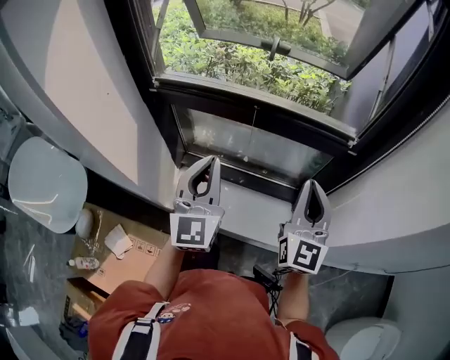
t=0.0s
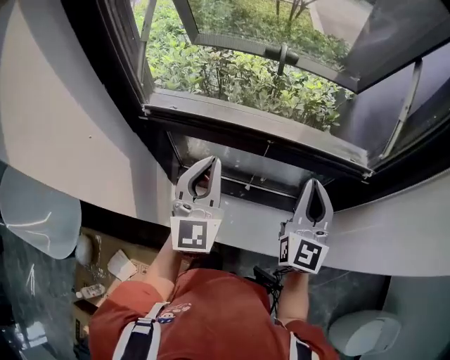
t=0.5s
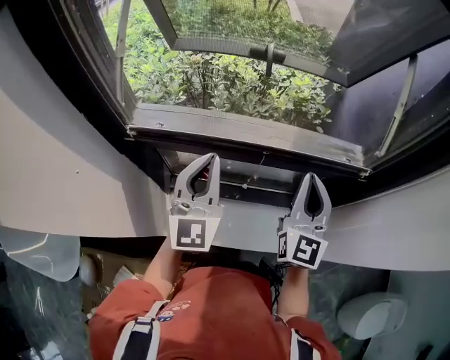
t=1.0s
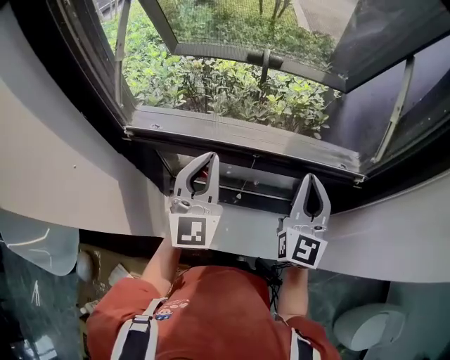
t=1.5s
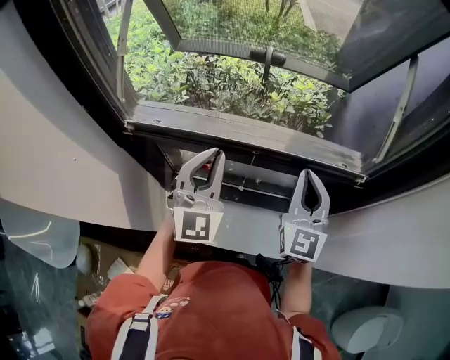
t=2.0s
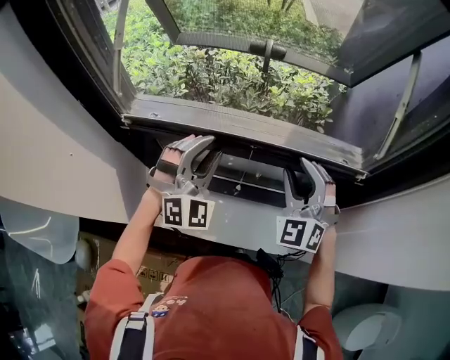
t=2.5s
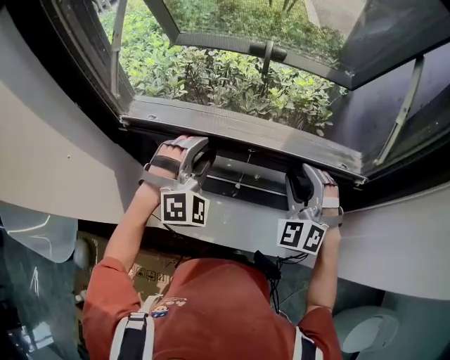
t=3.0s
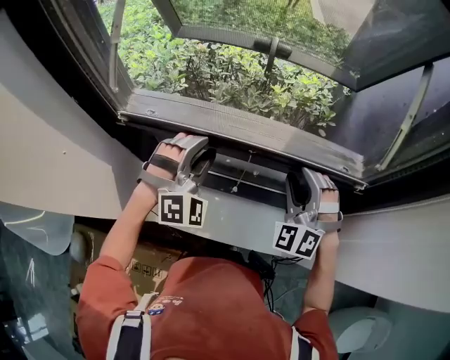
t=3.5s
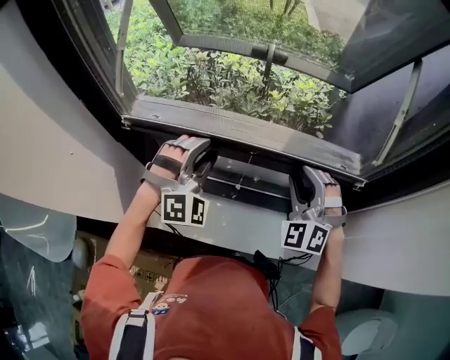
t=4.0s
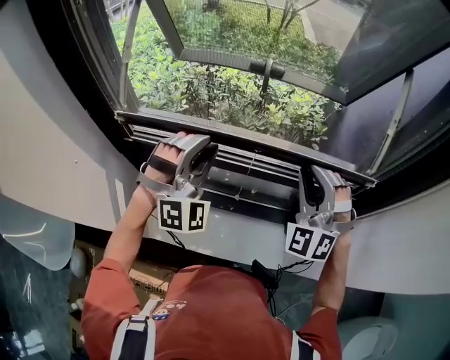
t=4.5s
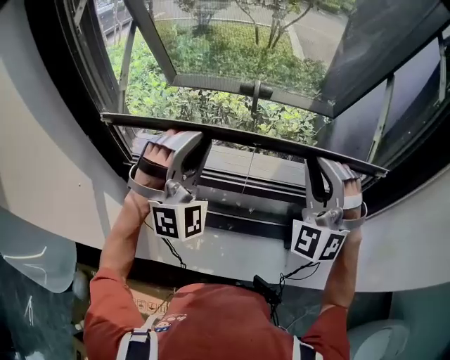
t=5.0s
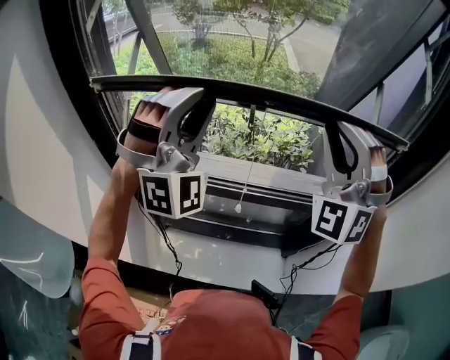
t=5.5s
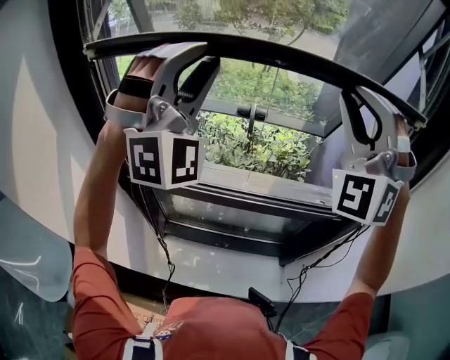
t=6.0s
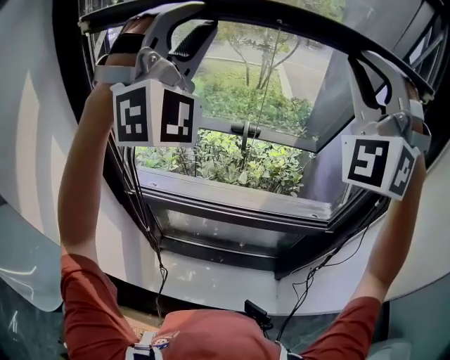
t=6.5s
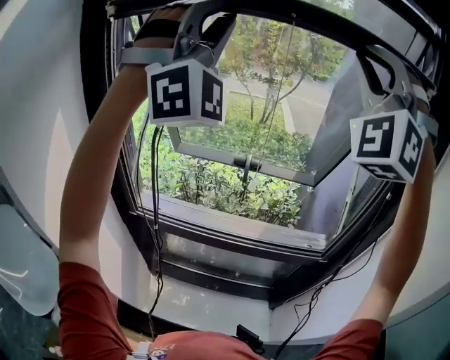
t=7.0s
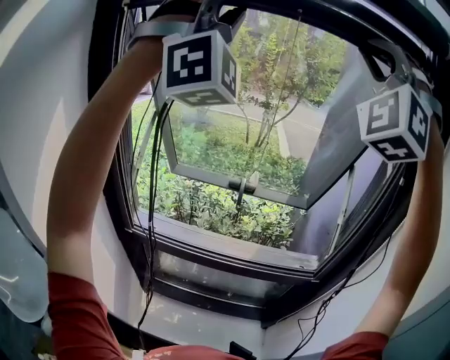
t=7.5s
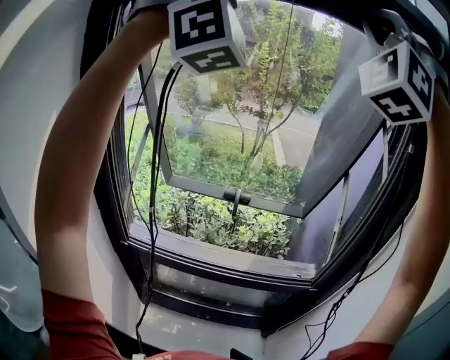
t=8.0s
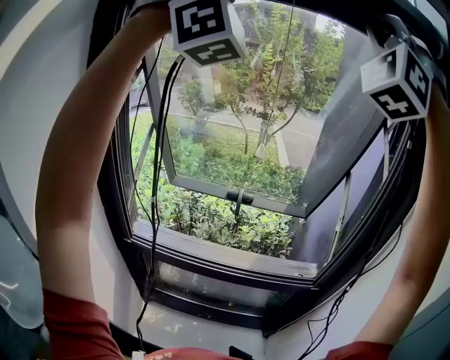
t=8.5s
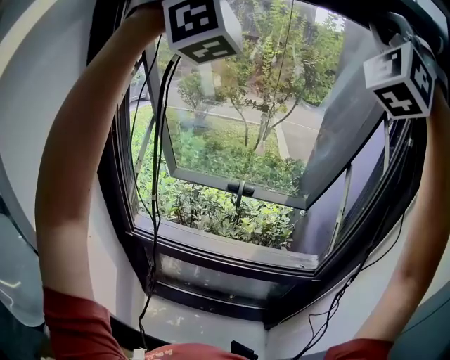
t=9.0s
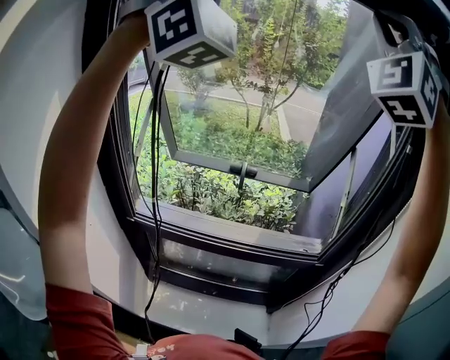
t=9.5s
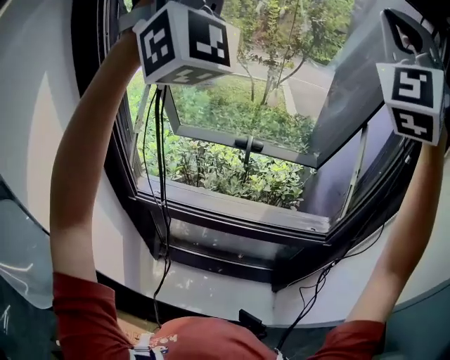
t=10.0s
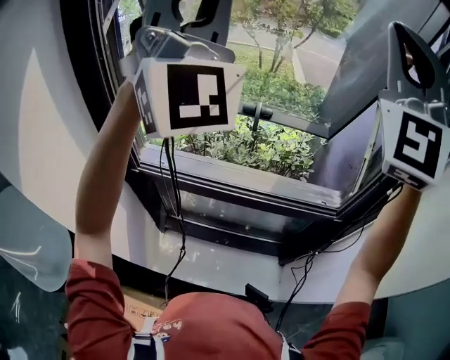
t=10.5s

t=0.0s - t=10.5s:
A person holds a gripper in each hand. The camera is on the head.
t=0.0s - t=2.0s: The two grippers go roughly 15 cm forward.
t=2.0s - t=4.0s: The left gripper is displaced downward by roughly 5 cm, twists roughly 50 degrees clockwise, seen from behind, and opens up; the right gripper moves roughly 5 cm, twists approximately 50 degrees counterclockwise, seen from behind, and opens.
t=4.0s - t=6.5s: The two grippers go about 50 cm upward. The right gripper tilts its fingers some 40 degrees upward, while the left gripper angles its fingers upward, by approximately 50 degrees.
t=6.5s - t=8.5s: Both grippers travel together upward, about 25 cm. The left gripper turns by about 30 degrees, and closes up.
t=8.5s - t=10.5s: Both grippers travel together downward, some 20 cm. The right gripper turns by roughly 40 degrees. The left gripper changes its angle by some 40 degrees.

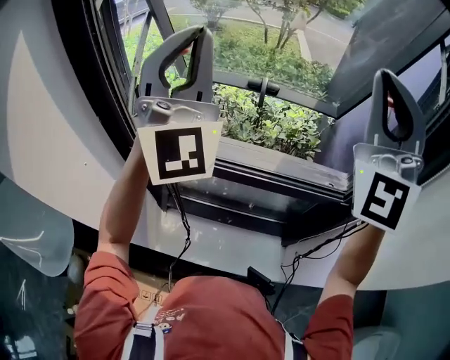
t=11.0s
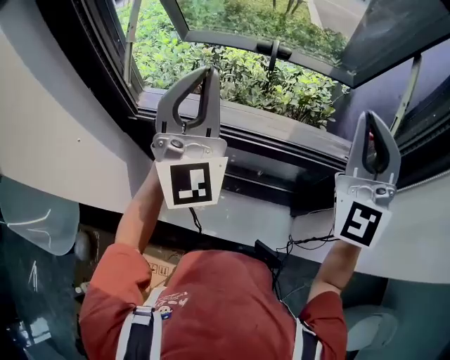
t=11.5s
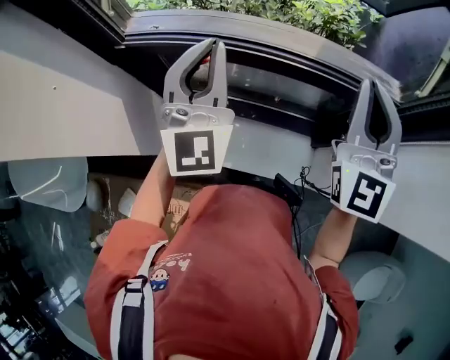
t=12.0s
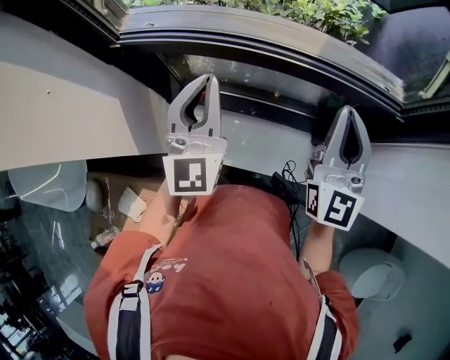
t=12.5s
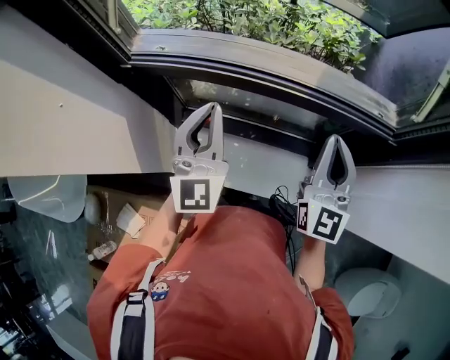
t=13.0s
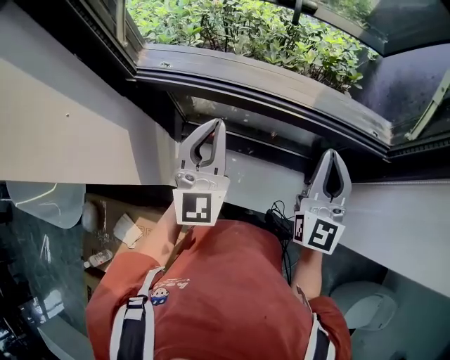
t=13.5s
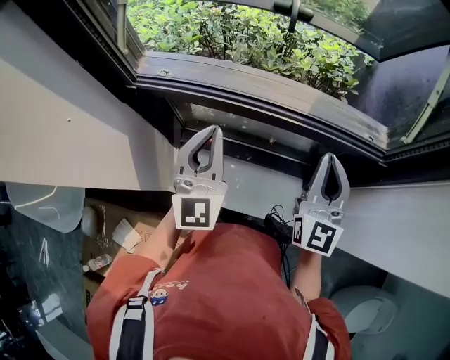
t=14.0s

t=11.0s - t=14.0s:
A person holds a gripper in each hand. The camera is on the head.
t=11.0s - t=12.5s: The two grippers go approximately 35 cm downward. The left gripper turns by approximately 40 degrees, while the right gripper twists approximately 40 degrees clockwise, seen from behind.
t=12.5s - t=14.0s: The grippers make only small movements.

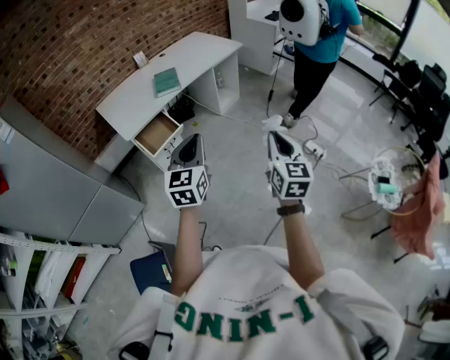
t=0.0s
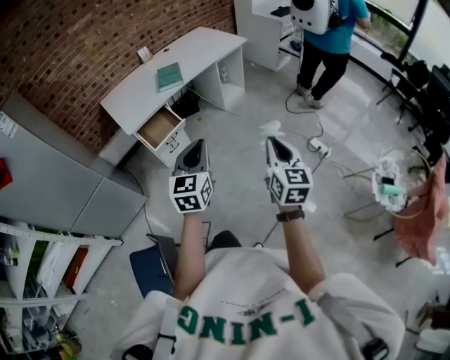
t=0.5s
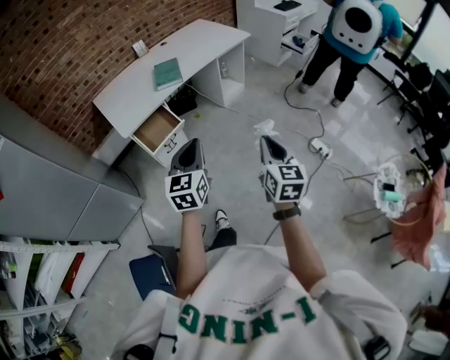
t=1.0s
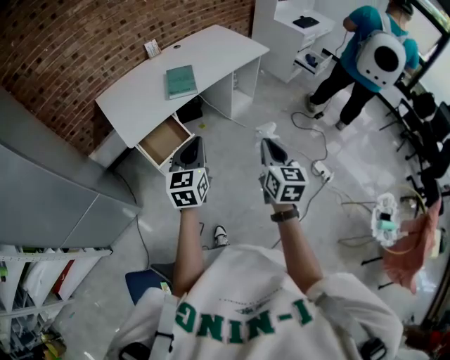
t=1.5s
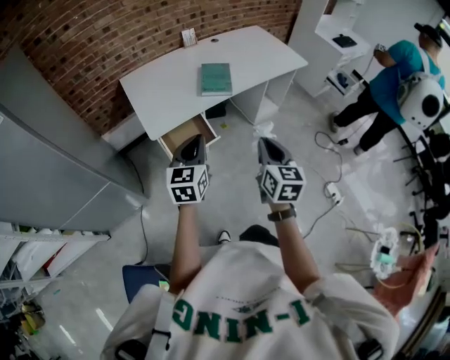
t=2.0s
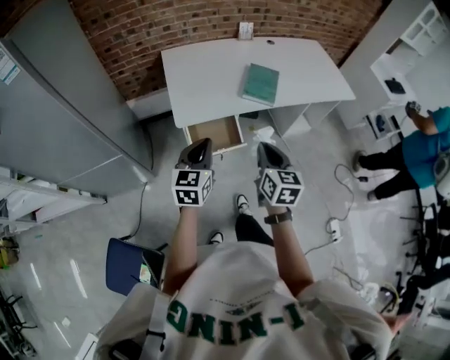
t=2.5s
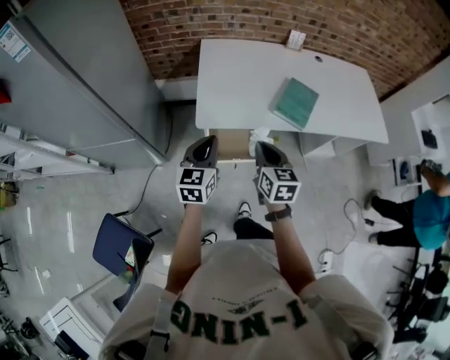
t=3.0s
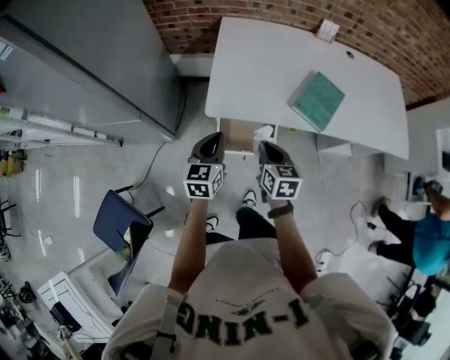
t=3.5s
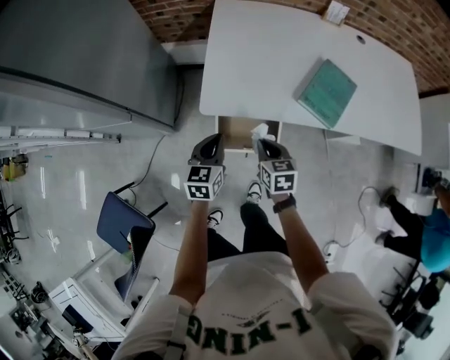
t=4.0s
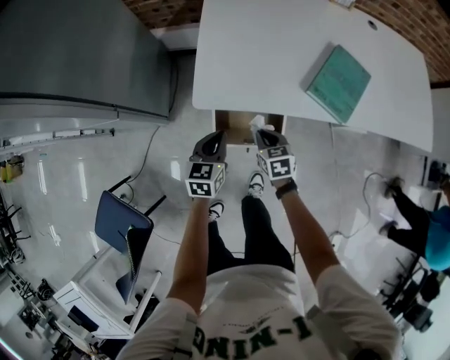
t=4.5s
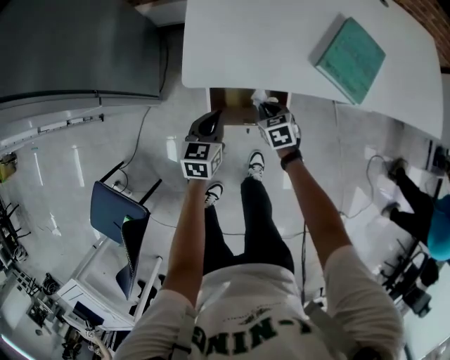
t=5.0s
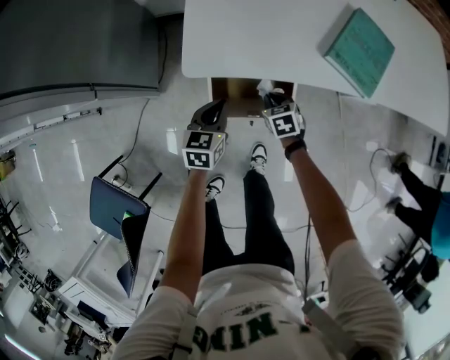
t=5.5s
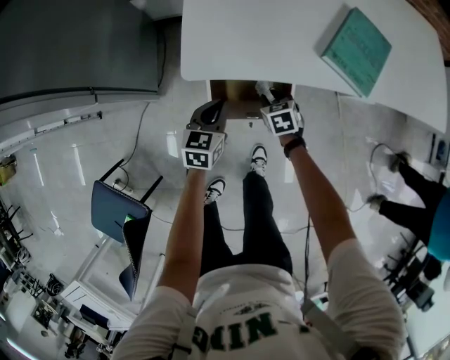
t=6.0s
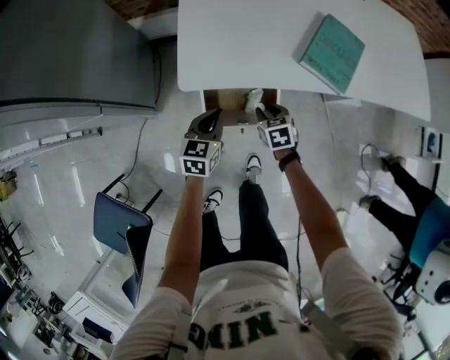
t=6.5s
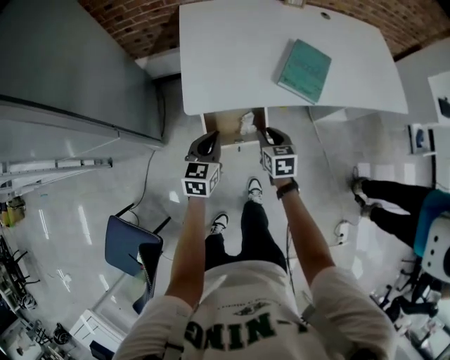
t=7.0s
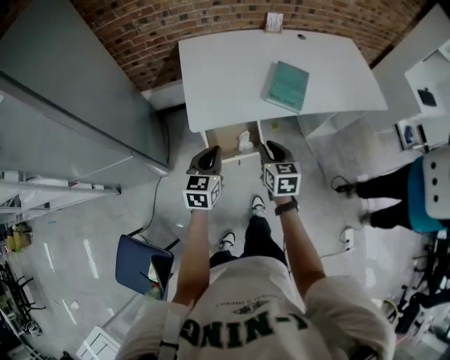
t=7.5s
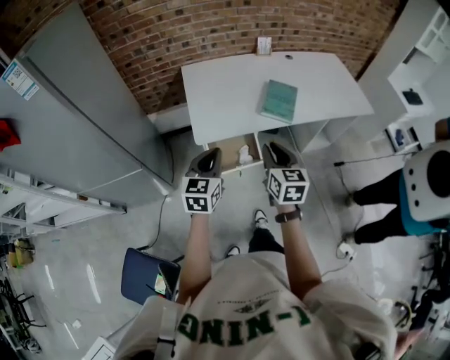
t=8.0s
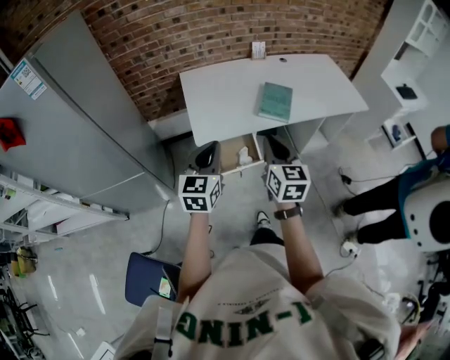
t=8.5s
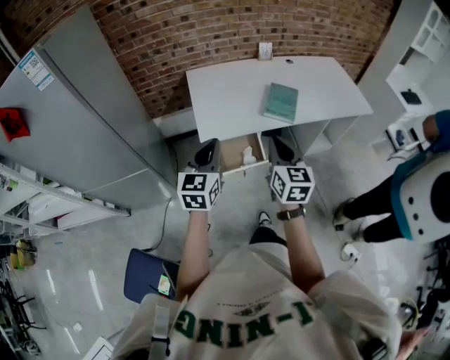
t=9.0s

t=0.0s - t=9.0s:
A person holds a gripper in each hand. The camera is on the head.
t=0.0s - t=2.0s: Both grippers travel together forward and to the left, about 35 cm.
t=2.0s - t=4.5s: Both grippers move downward, about 35 cm. The left gripper turns by about 40 degrees; the right gripper points its fingers some 40 degrees further downward.
t=4.5s - t=7.0s: Both grippers move upward, about 10 cm.
t=7.0s - t=9.0s: The two grippers go some 30 cm upward and backward. The right gripper tilts its fingers roughly 30 degrees upward, and closes up; the left gripper rotates roughly 20 degrees.

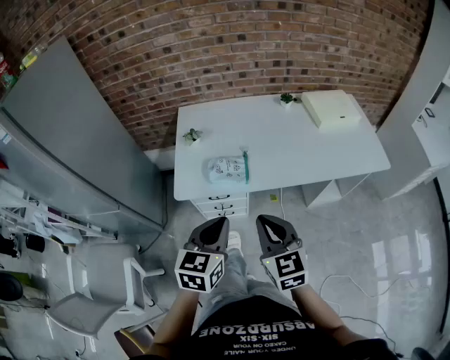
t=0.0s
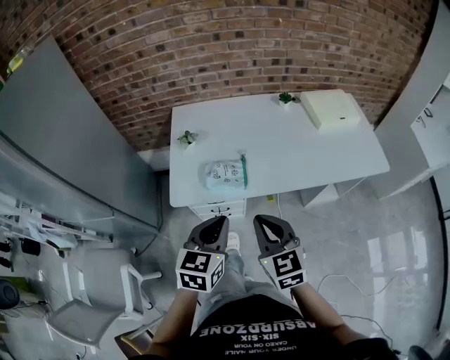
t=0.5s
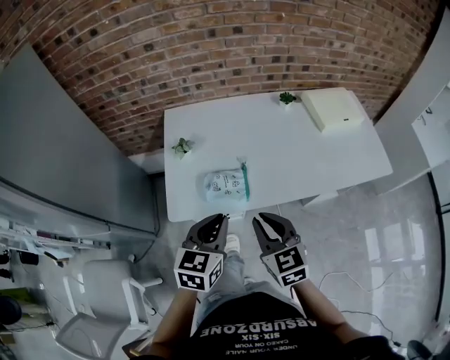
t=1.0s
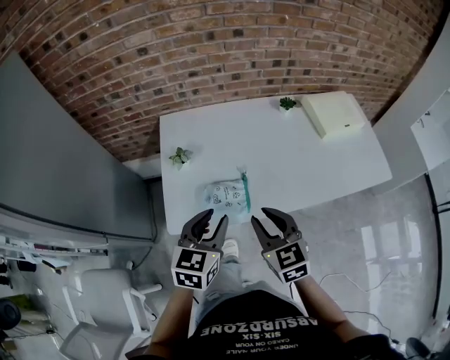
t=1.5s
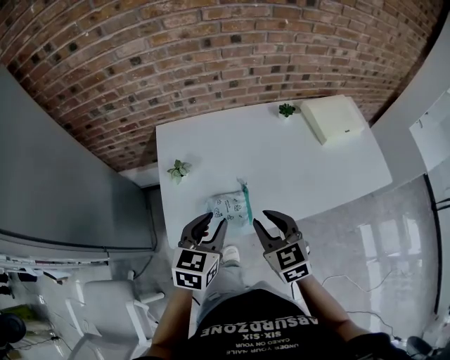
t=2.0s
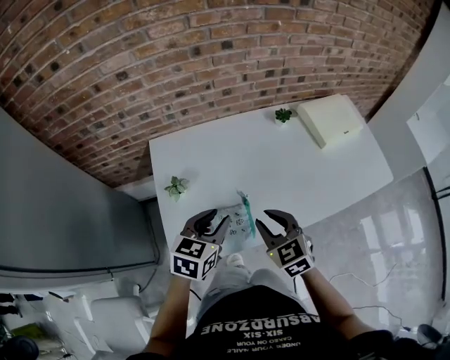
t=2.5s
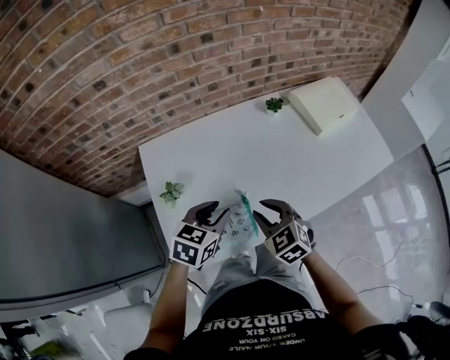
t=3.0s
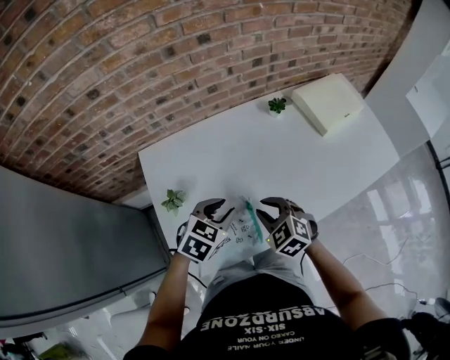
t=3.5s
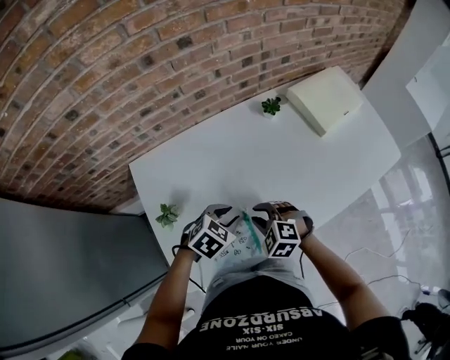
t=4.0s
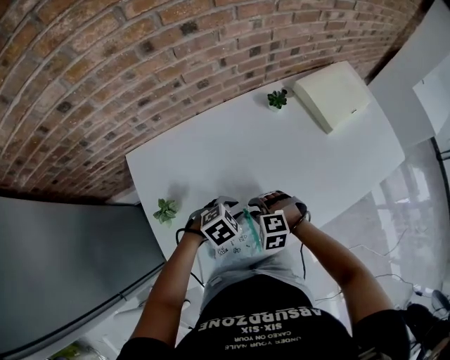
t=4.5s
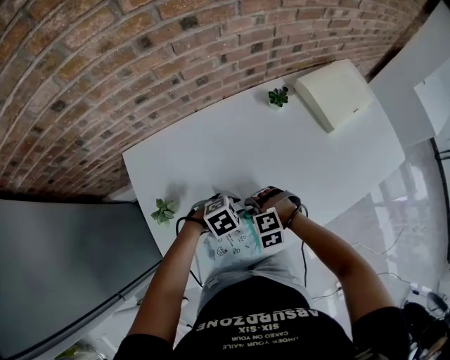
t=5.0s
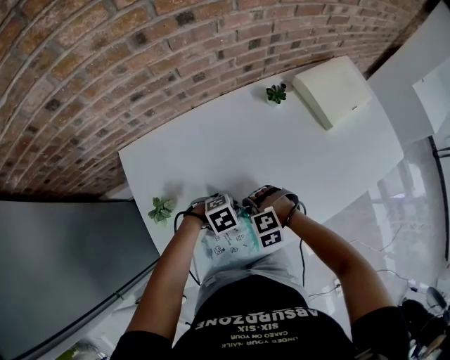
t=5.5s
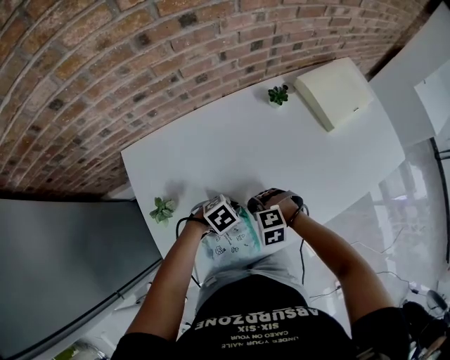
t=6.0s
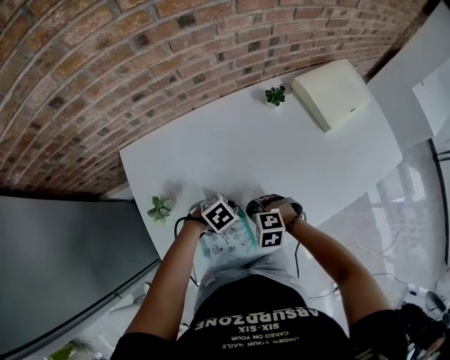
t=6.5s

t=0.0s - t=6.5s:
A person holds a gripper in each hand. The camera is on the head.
t=0.0s - t=2.0s: Both grippers travel together forward, roughly 25 cm. The right gripper opens up, while the left gripper opens its fingers.
t=2.0s - t=4.5s: Both grippers move downward and forward, some 30 cm. The left gripper tilts its fingers about 30 degrees downward; the right gripper angles its fingers downward, by approximately 40 degrees.
t=4.5s - t=6.5s: The left gripper moves downward, about 5 cm, and closes its fingers. The right gripper closes up.
